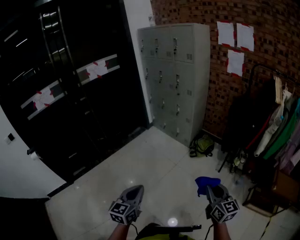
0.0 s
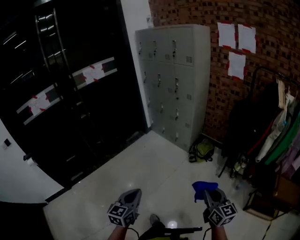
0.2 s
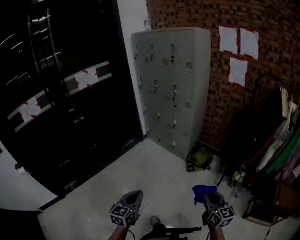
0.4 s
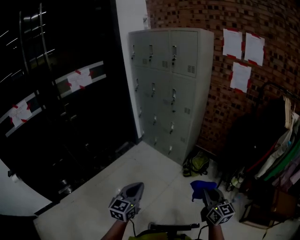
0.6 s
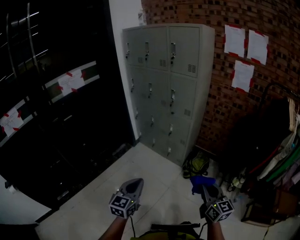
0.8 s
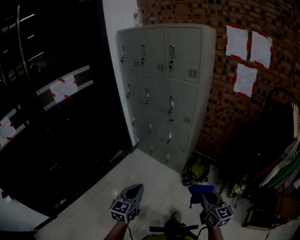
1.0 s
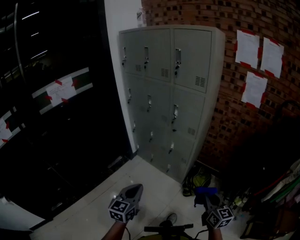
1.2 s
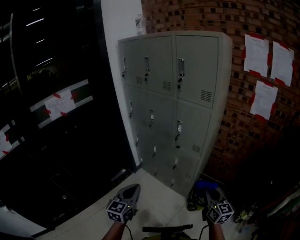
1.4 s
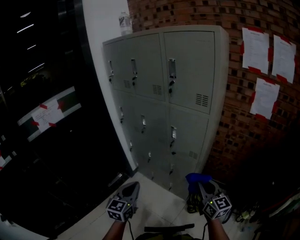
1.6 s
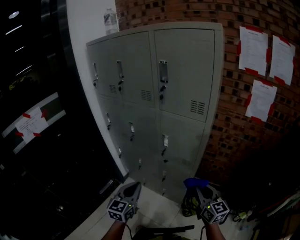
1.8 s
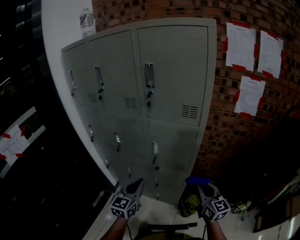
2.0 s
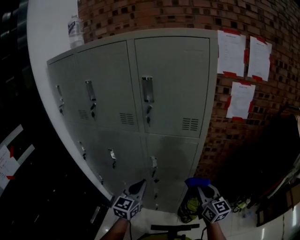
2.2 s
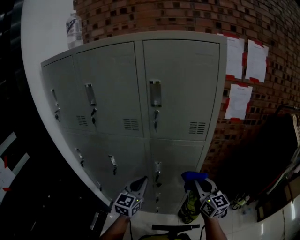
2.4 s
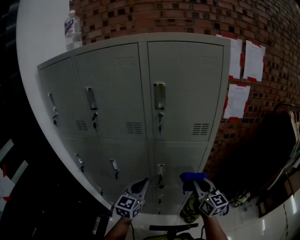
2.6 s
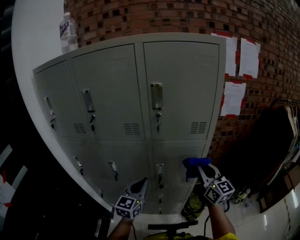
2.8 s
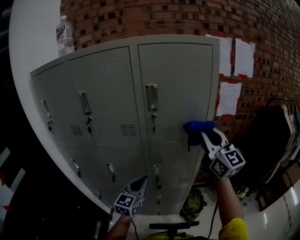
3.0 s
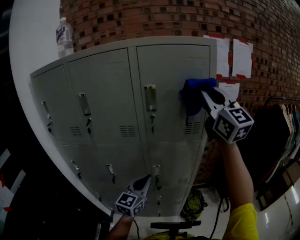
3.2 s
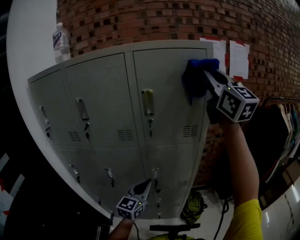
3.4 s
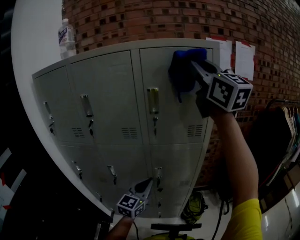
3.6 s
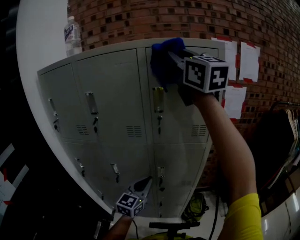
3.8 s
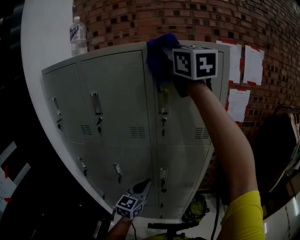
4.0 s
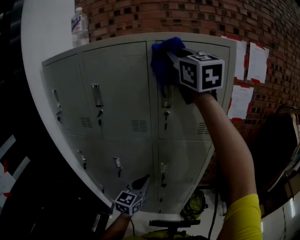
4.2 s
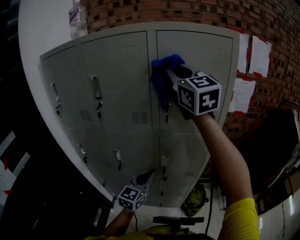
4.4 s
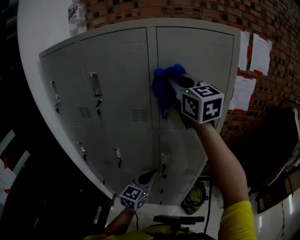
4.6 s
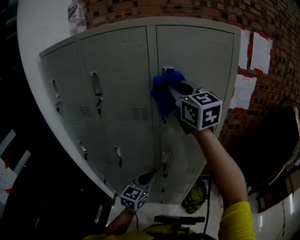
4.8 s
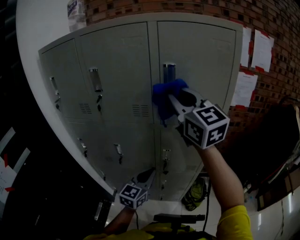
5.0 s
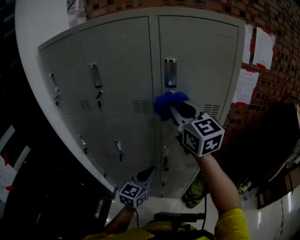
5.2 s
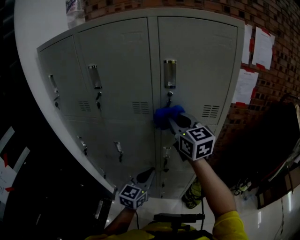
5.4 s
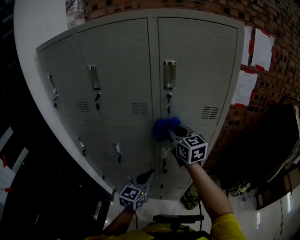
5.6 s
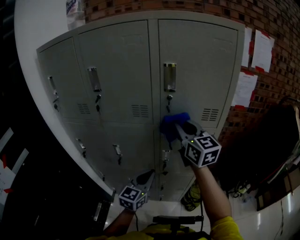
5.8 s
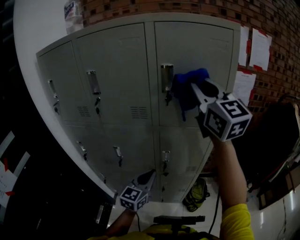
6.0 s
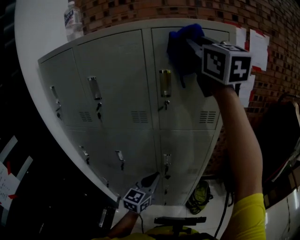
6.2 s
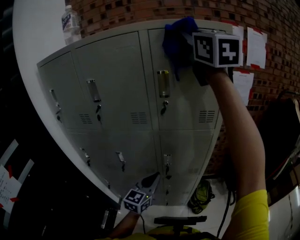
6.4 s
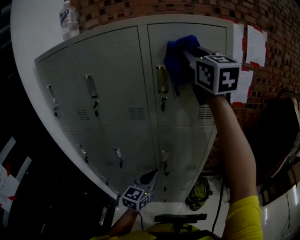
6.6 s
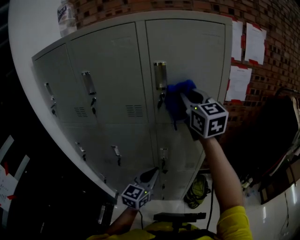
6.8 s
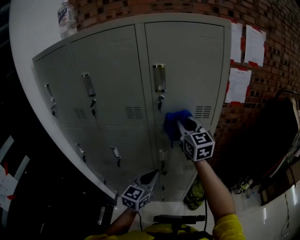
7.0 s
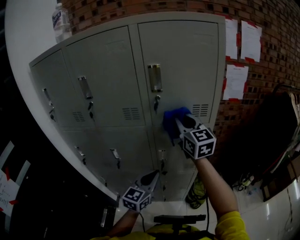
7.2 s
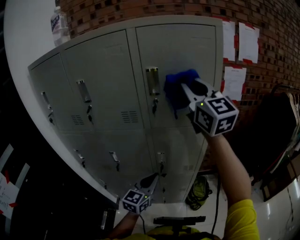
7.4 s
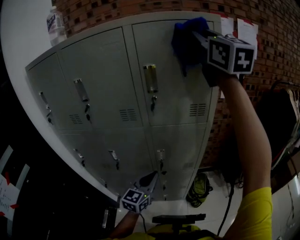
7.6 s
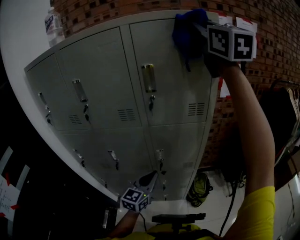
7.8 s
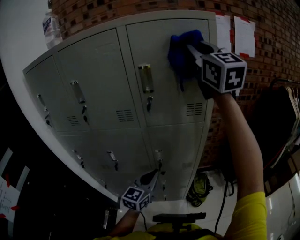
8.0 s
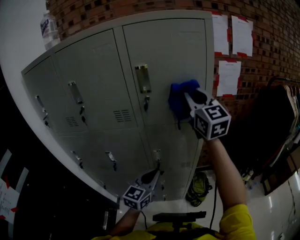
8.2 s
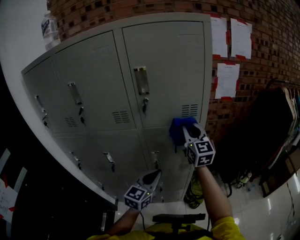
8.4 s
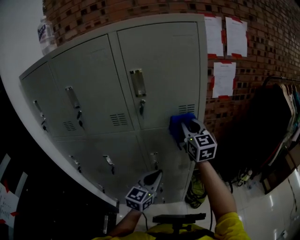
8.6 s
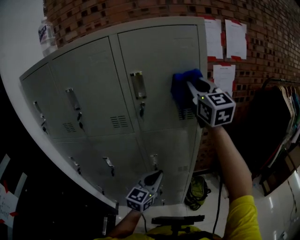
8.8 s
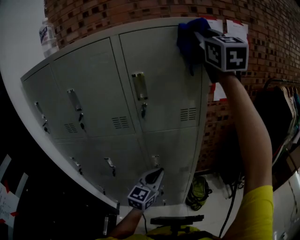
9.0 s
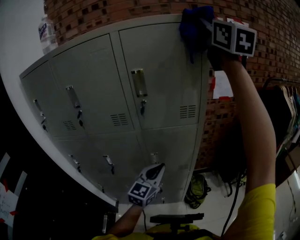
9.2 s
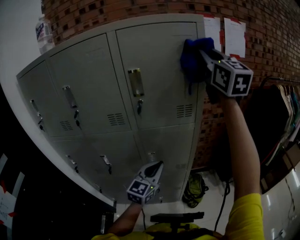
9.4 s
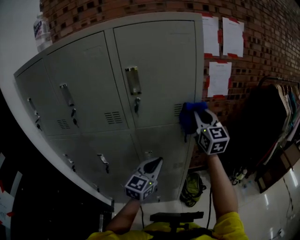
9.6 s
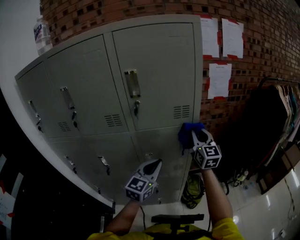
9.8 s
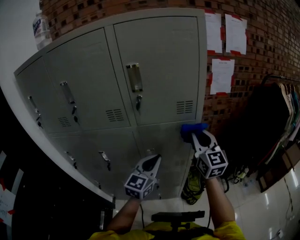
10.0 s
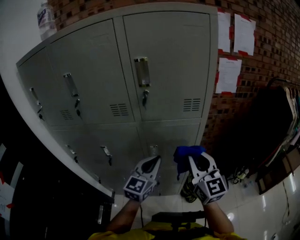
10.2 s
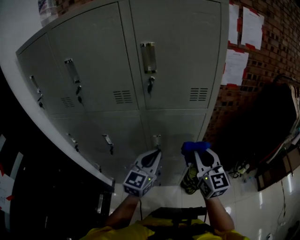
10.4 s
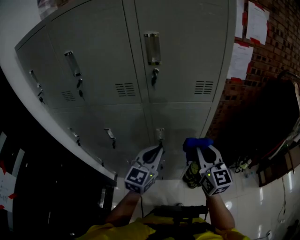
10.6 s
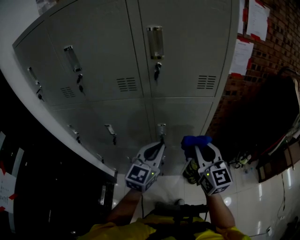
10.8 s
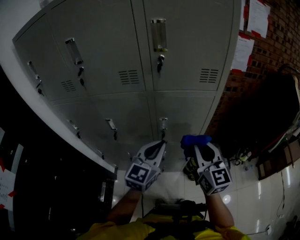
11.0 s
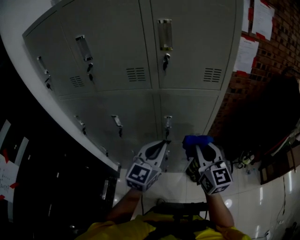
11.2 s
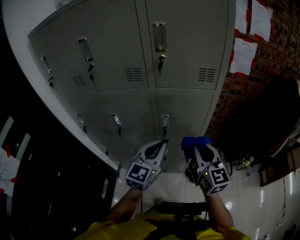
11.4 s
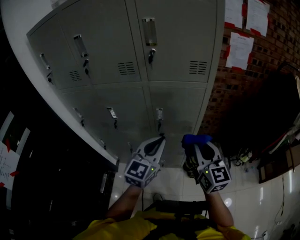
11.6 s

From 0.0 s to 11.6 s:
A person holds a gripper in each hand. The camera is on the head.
From 0.0 s to 1.4 s: The two grippers travel together, forward, some 80 cm.
From 1.4 s to 2.8 s: The right gripper ends up some 40 cm from where it was, and turns by some 30 degrees. Meanwhile the left gripper changes place by approximately 50 cm, and swivels some 40 degrees.
From 2.8 s to 4.4 s: The right gripper is displaced upward and to the left by approximately 35 cm, and rotates roughly 20 degrees.
From 4.4 s to 5.8 s: The right gripper is displaced downward by roughly 25 cm.
From 5.8 s to 7.2 s: The right gripper reaches roughly 35 cm upward, then returns.
From 7.2 s to 8.8 s: The right gripper swings up and down, about 40 cm each way, with 2 reversals; the left gripper is displaced to the right by about 5 cm.
From 8.8 s to 10.2 s: The right gripper is displaced downward and backward by some 30 cm.
From 10.2 s to 11.6 s: The left gripper travels backward by some 10 cm. Meanwhile the right gripper goes about 10 cm backward and downward.

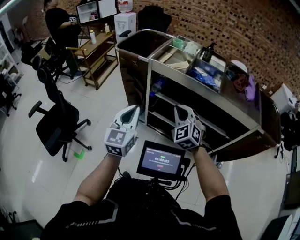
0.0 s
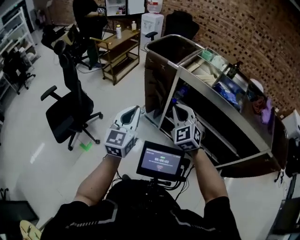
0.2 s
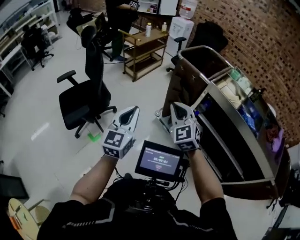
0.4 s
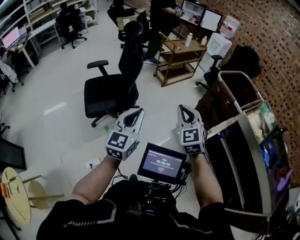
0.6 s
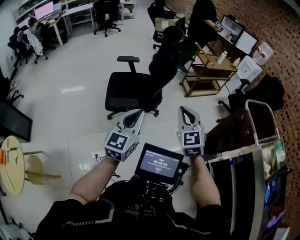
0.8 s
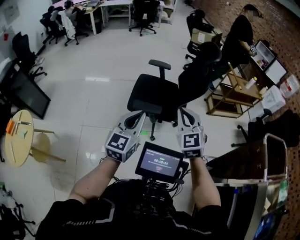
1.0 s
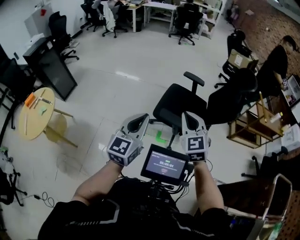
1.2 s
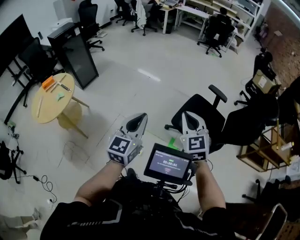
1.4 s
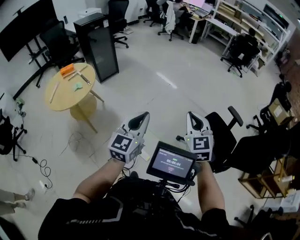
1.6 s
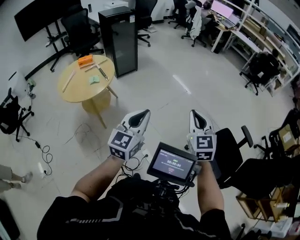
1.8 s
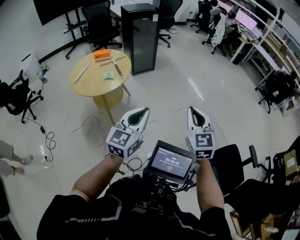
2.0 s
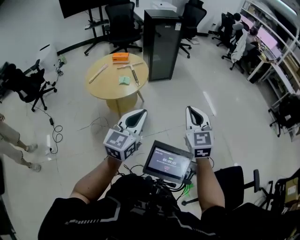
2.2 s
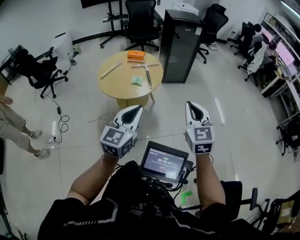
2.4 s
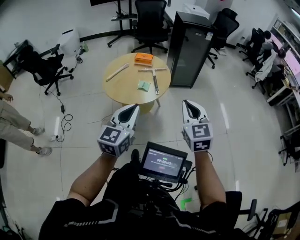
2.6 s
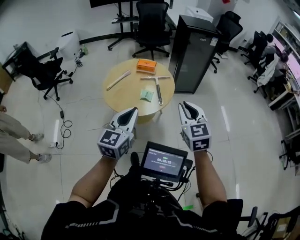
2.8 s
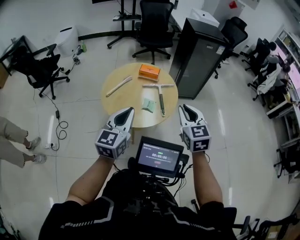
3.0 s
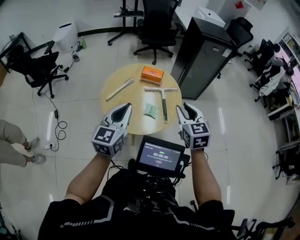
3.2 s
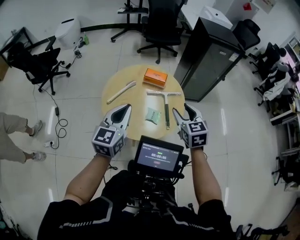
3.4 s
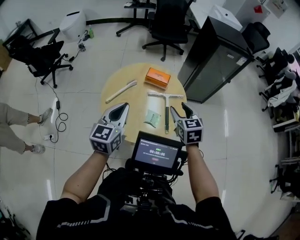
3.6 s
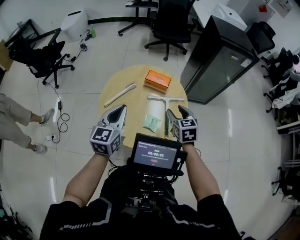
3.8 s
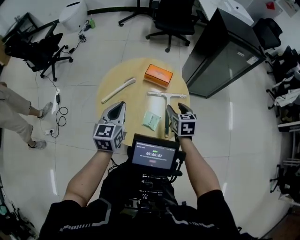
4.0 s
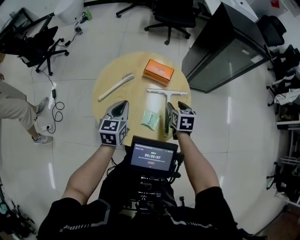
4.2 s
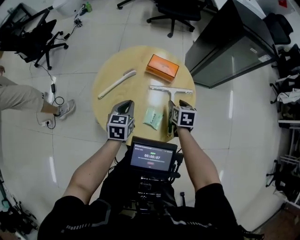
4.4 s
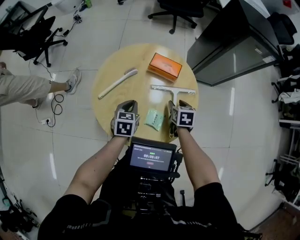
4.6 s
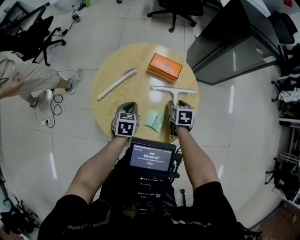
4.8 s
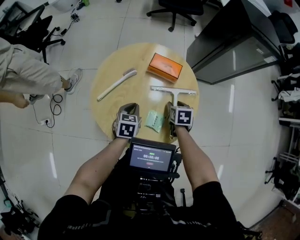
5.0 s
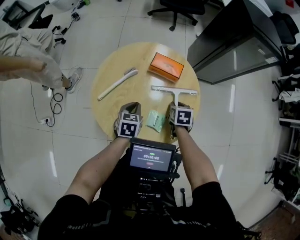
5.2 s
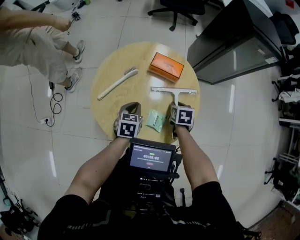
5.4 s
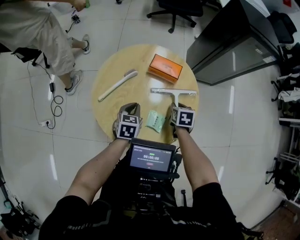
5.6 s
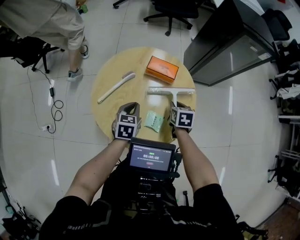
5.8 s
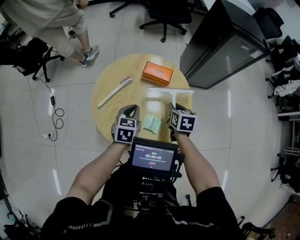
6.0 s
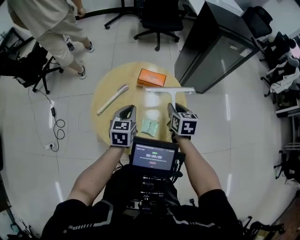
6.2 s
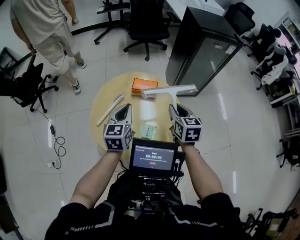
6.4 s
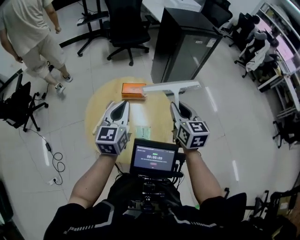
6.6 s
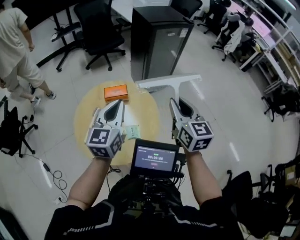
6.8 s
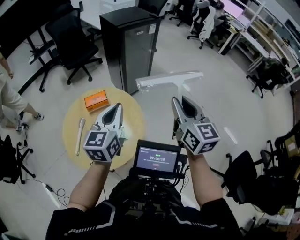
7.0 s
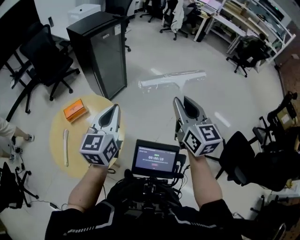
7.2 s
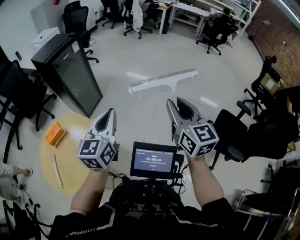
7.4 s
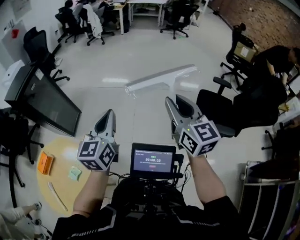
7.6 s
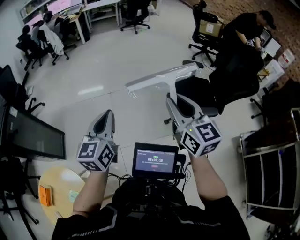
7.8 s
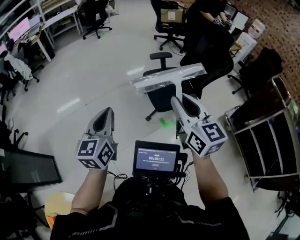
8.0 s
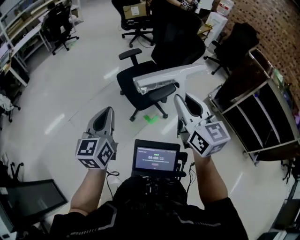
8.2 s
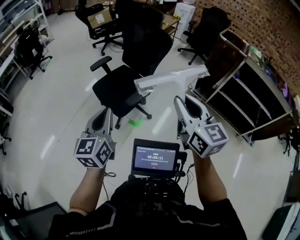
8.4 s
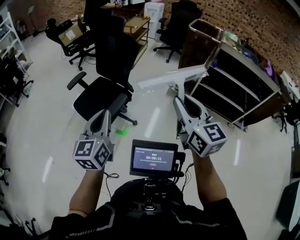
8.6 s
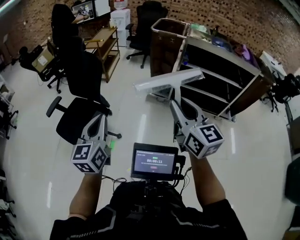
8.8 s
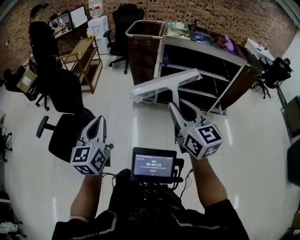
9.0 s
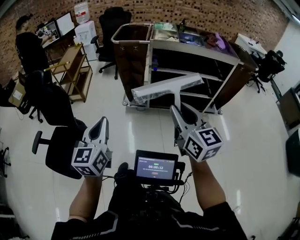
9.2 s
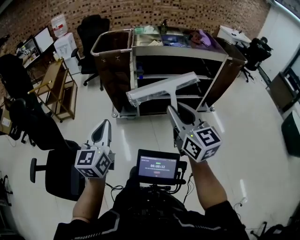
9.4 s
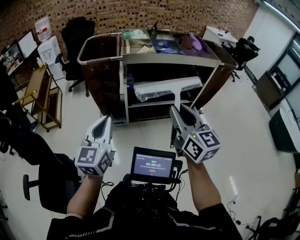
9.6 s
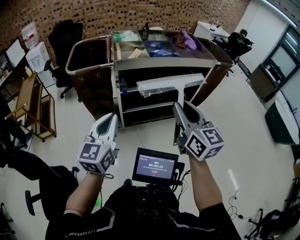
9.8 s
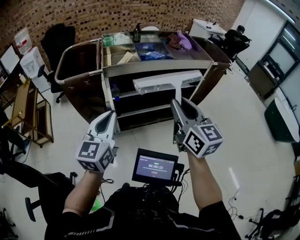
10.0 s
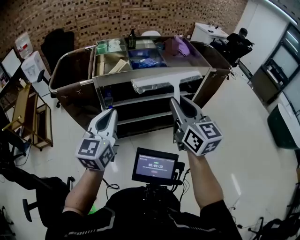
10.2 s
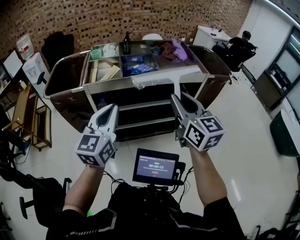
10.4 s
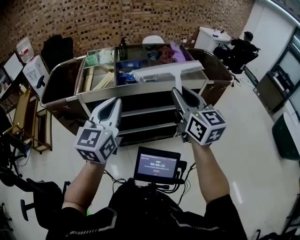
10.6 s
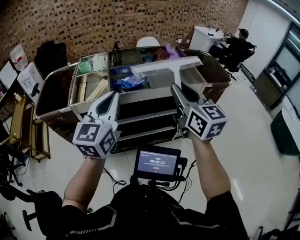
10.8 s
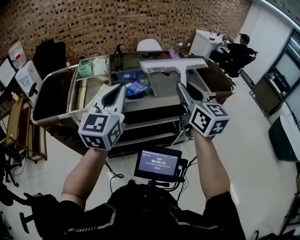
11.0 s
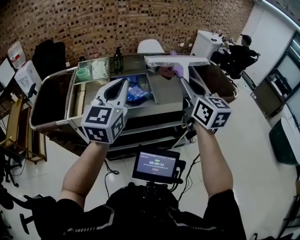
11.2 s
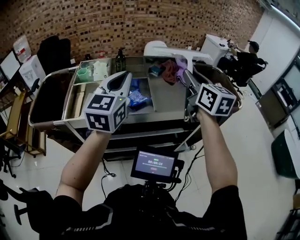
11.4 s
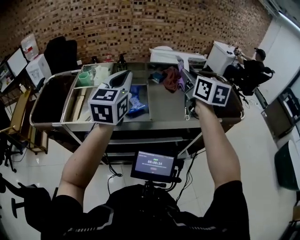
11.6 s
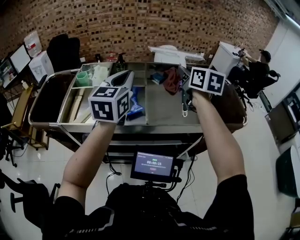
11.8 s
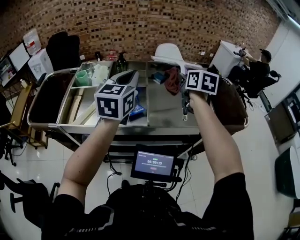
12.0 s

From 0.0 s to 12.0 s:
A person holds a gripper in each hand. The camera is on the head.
From 0.0 s to 1.6 s: The pair of grippers is taken about 1.5 m. The right gripper changes its angle by roughly 100 degrees. Meanwhile the left gripper turns by roughly 100 degrees.
From 1.6 s to 3.0 s: The pair of grippers is taken some 1 m. The right gripper swivels about 50 degrees. The left gripper rotates roughly 50 degrees.
From 3.0 s to 4.4 s: Both grippers are carried forward, roughly 60 cm. Both grippers travel together downward, some 40 cm. The right gripper angles its fingers downward, by about 30 degrees, and opens up. The left gripper angles its fingers downward, by some 30 degrees.
From 4.4 s to 6.0 s: The left gripper travels downward and back again, about 10 cm each way. Meanwhile the right gripper moves upward, about 5 cm, and closes its fingers.
From 6.0 s to 7.6 s: Both grippers are carried some 90 cm. The right gripper points its fingers approximately 50 degrees further upward. The left gripper tilts its fingers approximately 40 degrees upward.
From 7.6 s to 9.0 s: The two grippers travel together, about 1 m. The right gripper rotates roughly 90 degrees; the left gripper rotates approximately 90 degrees.
From 9.0 s to 10.4 s: The pair of grippers is taken roughly 90 cm. The right gripper turns by approximately 20 degrees. The left gripper turns by some 30 degrees.
From 10.4 s to 12.0 s: Both grippers are carried forward and to the right, roughly 70 cm. The right gripper rotates roughly 30 degrees.
